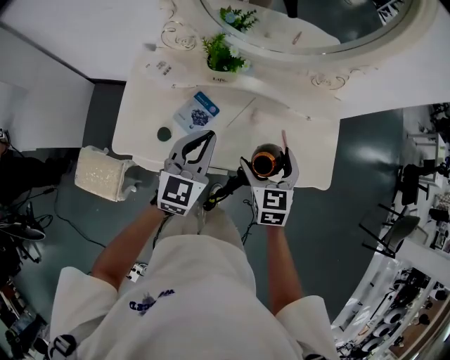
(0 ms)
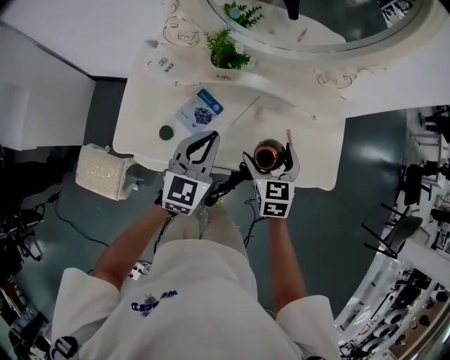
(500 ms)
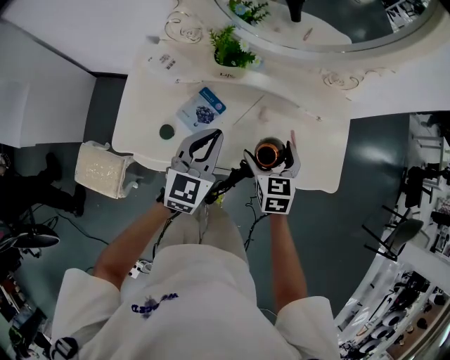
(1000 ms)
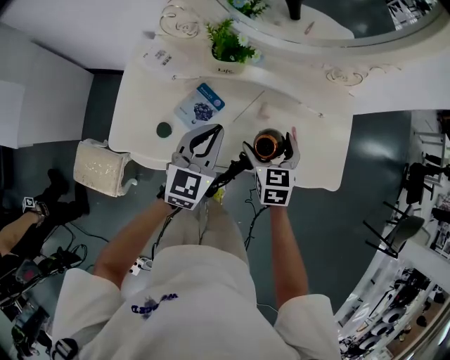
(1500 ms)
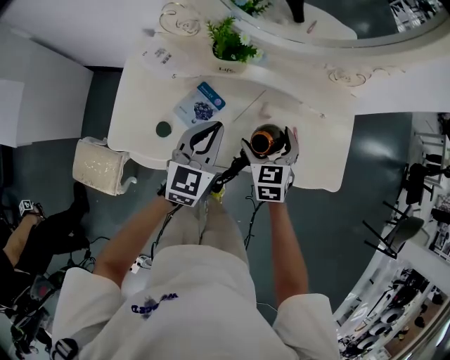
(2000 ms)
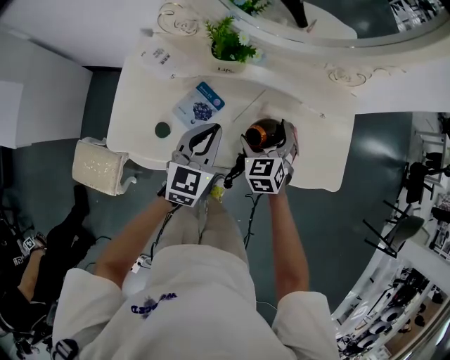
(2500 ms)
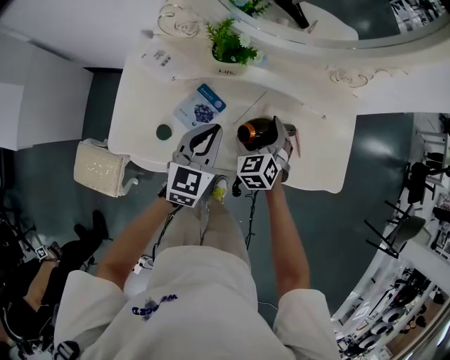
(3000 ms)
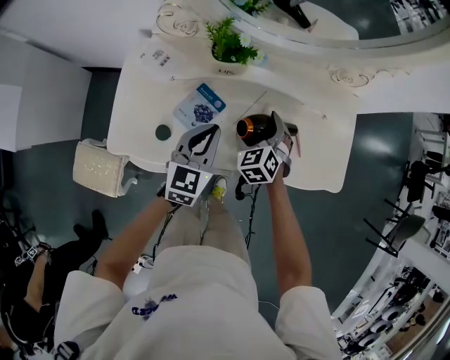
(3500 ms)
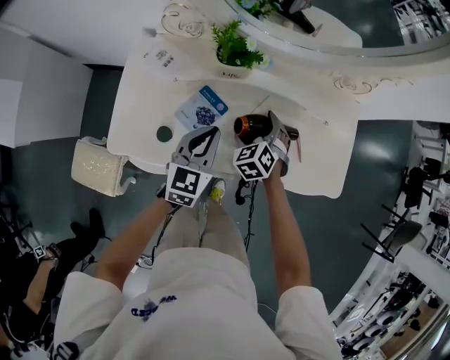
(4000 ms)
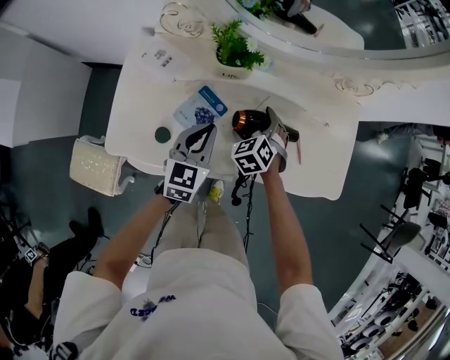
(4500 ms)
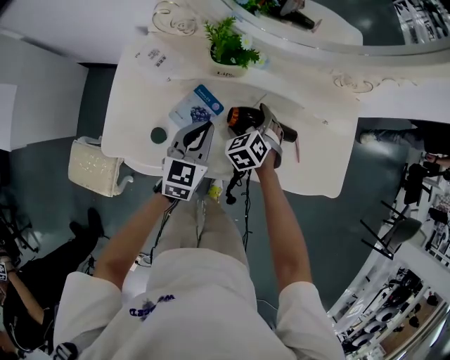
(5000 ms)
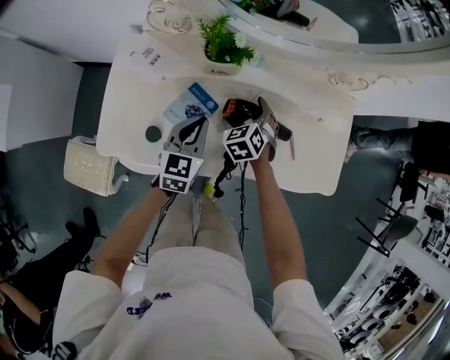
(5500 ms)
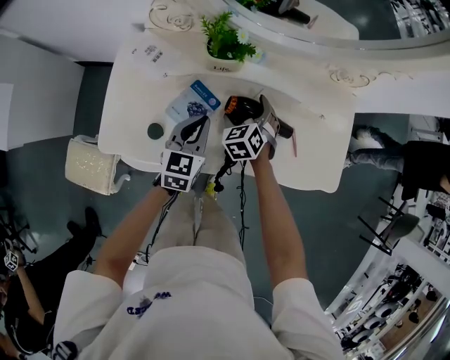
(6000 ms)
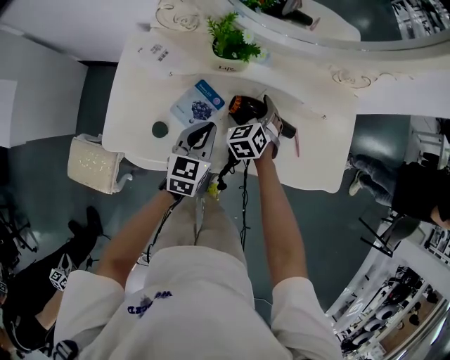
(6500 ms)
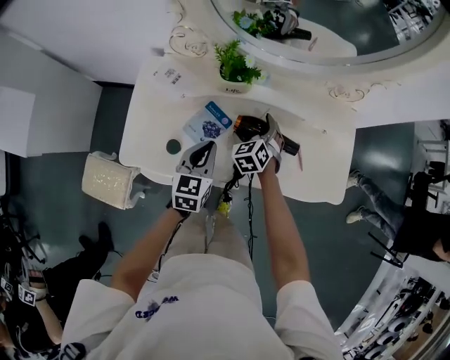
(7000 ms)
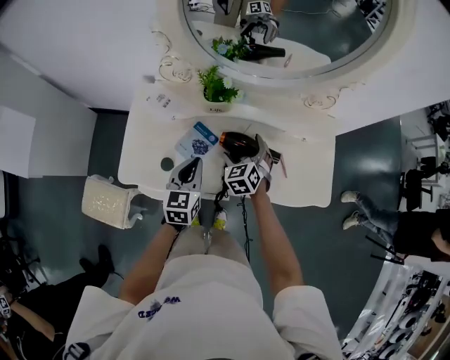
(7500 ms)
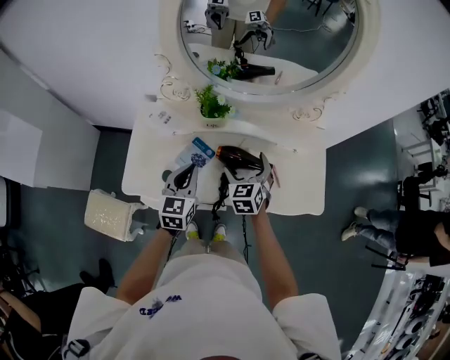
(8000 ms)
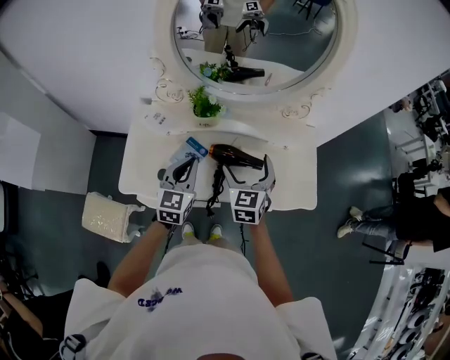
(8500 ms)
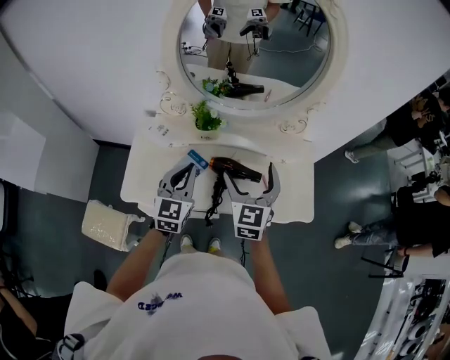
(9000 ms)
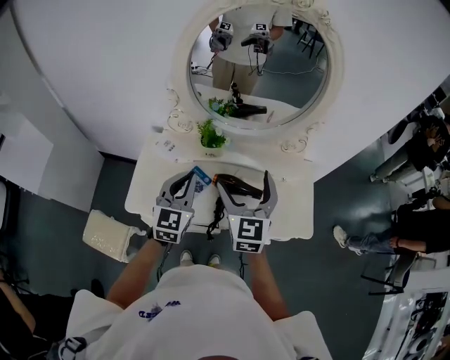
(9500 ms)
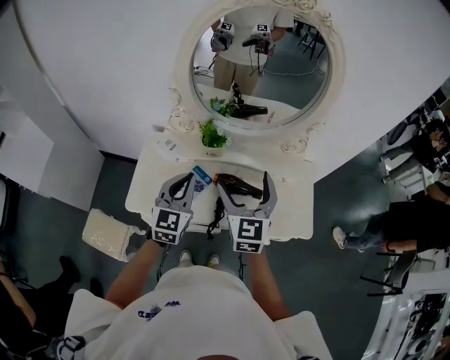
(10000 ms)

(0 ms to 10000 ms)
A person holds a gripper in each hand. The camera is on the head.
0 ms - 2000 ms: The left gripper travels downward by approximately 5 cm, while the right gripper heads downward and forward, covering roughly 10 cm.
2000 ms - 4000 ms: The right gripper moves downward, about 10 cm, and turns by approximately 30 degrees.
4000 ms - 6000 ms: The left gripper shifts by some 5 cm.
6000 ms - 8000 ms: Both grippers move upward, some 15 cm. The right gripper turns by approximately 20 degrees.
8000 ms - 10000 ms: The left gripper heads upward, covering some 15 cm, while the right gripper heads upward, covering about 25 cm, and swivels roughly 30 degrees.

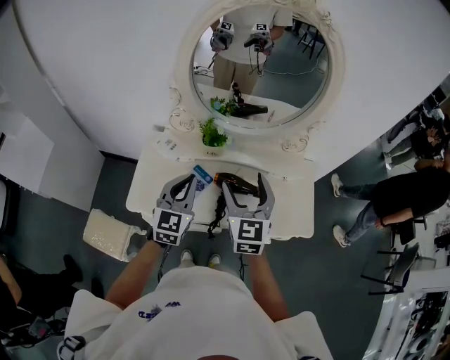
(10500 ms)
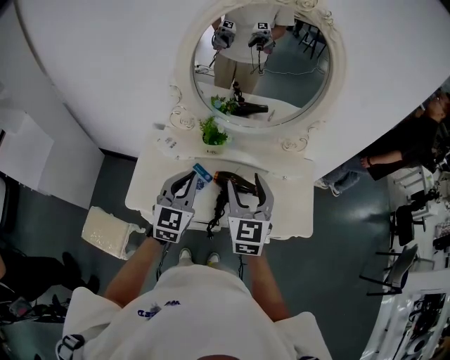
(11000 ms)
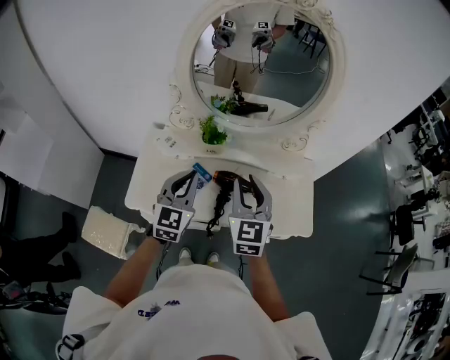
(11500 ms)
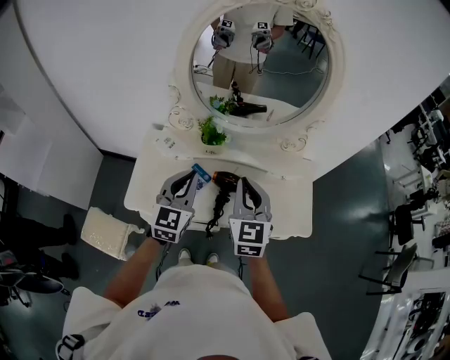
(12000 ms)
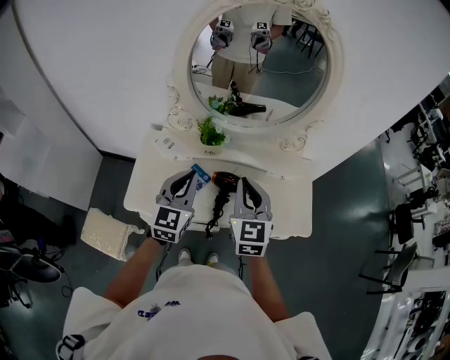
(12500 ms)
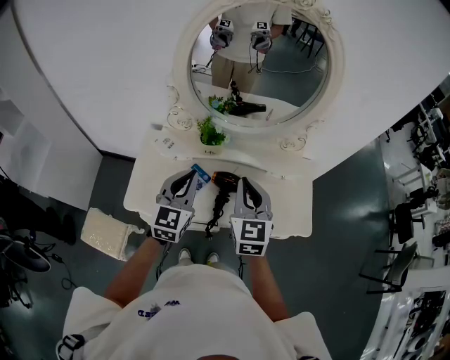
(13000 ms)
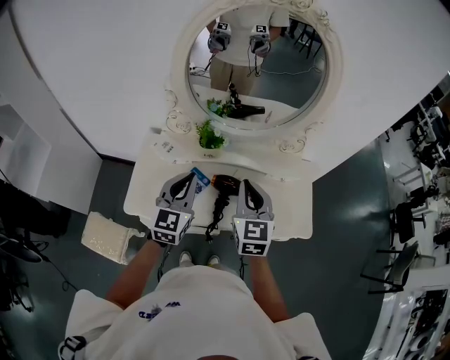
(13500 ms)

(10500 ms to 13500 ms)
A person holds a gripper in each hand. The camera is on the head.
10500 ms - 12000 ms: The right gripper closes.
12000 ms - 13500 ms: There are only small adjustments of the grippers.

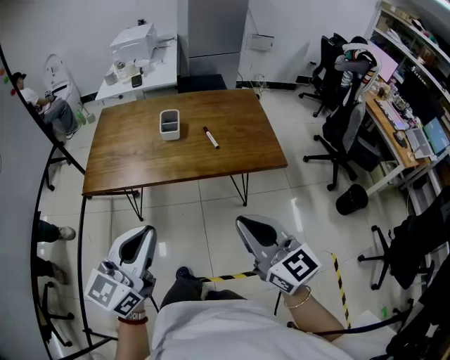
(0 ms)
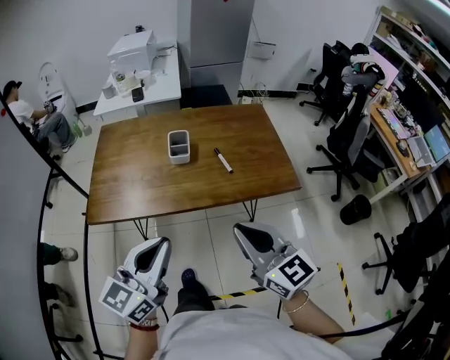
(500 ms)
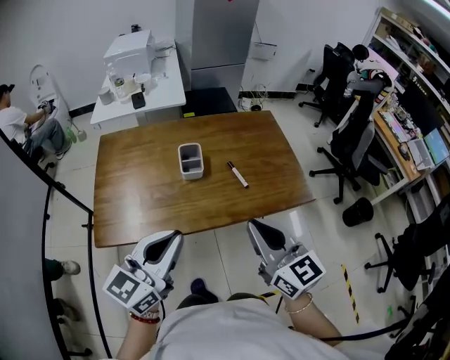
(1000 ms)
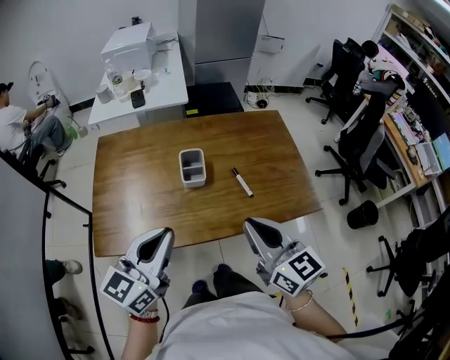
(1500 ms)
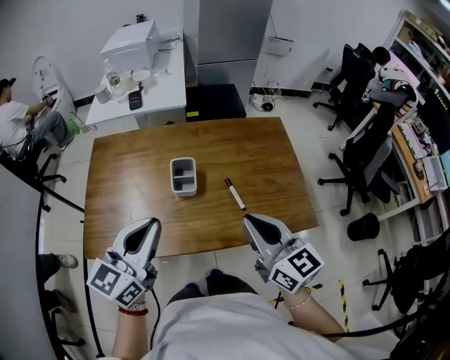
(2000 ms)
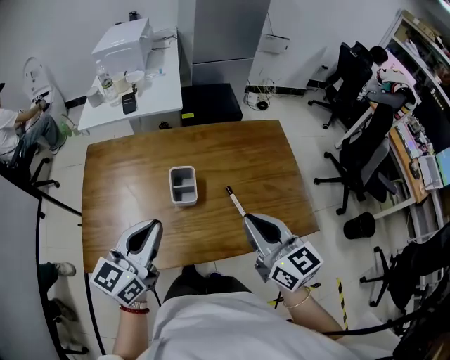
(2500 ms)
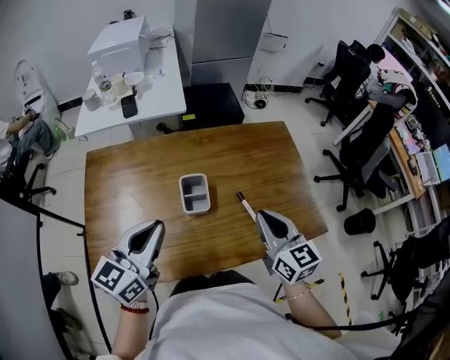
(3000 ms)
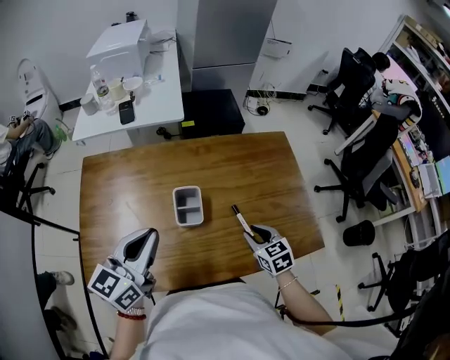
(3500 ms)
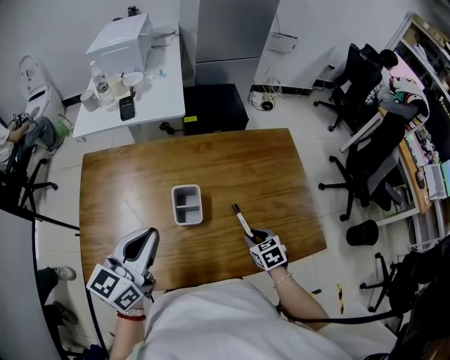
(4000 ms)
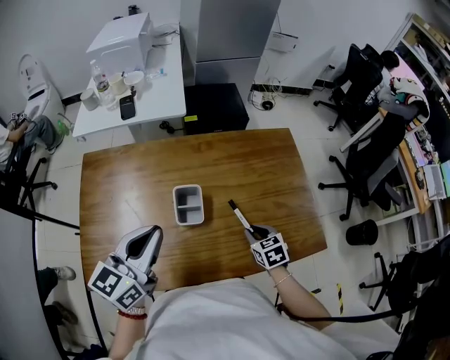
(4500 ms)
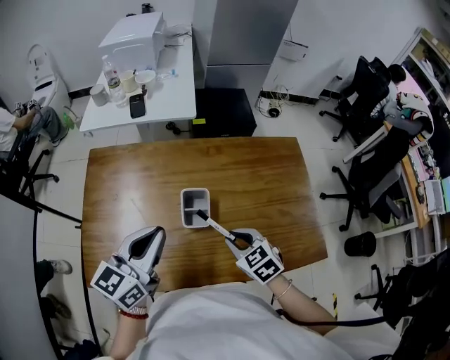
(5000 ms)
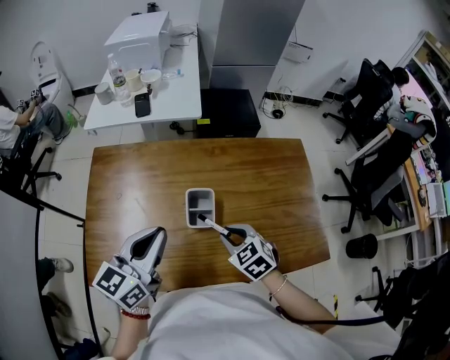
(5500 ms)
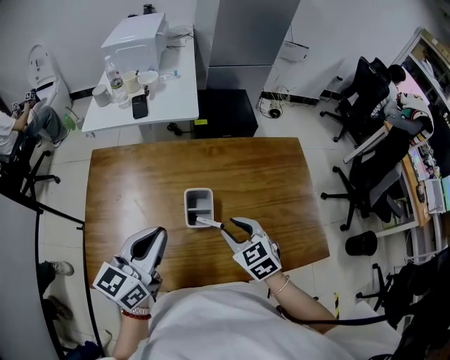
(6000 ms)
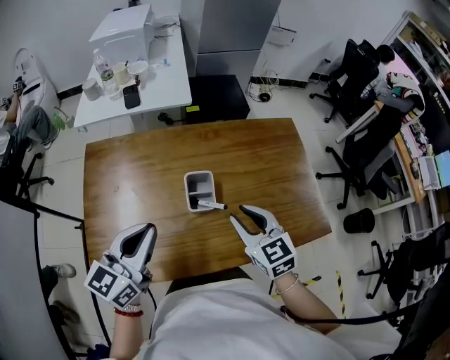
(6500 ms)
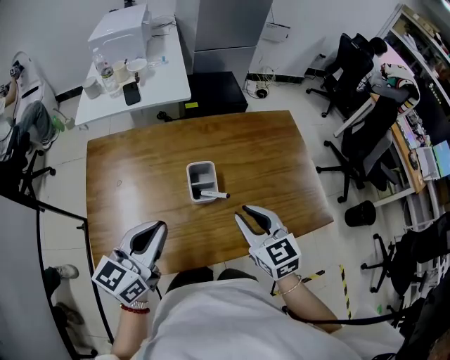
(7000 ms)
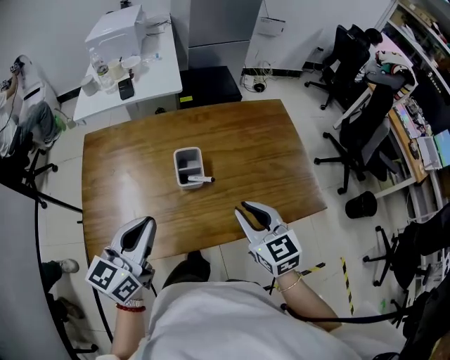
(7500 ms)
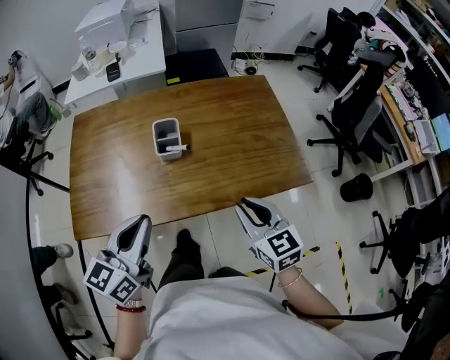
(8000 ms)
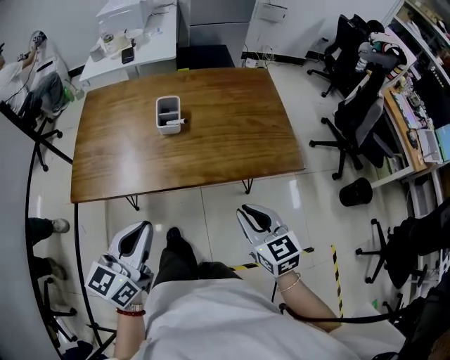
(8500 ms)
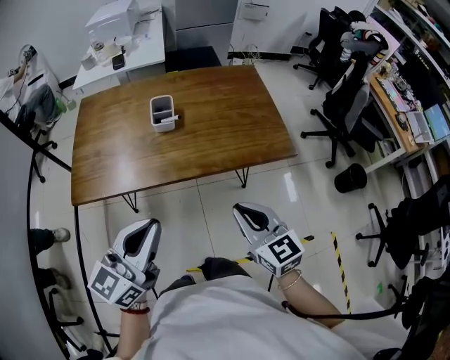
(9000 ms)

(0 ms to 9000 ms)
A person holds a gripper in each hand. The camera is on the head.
0 ms - 2000 ms: Both grippers move forward, approximately 35 cm.
2000 ms - 4500 ms: The left gripper shifts roughly 15 cm forward and downward; the right gripper is displaced downward and forward by approximately 30 cm, and points its fingers approximately 50 degrees further downward.
4500 ms - 7000 ms: The left gripper is displaced to the left and backward by some 10 cm. The right gripper heads upward and to the left, covering some 20 cm, and turns by some 30 degrees.
7000 ms - 9000 ms: The grippers both shift backward and to the right by some 35 cm.

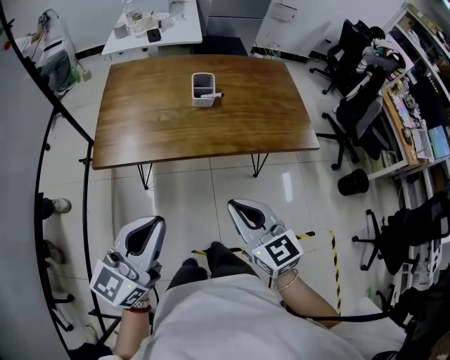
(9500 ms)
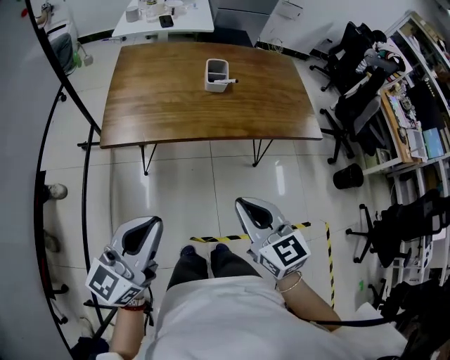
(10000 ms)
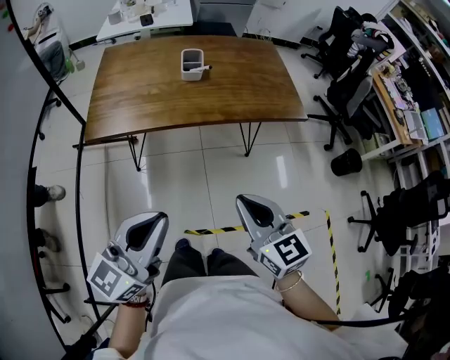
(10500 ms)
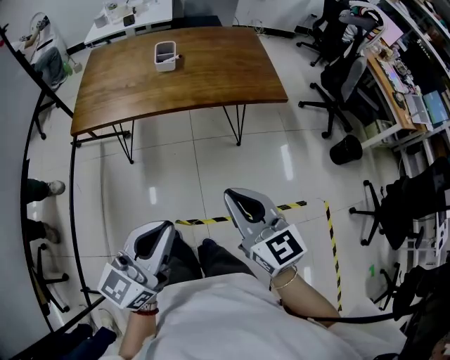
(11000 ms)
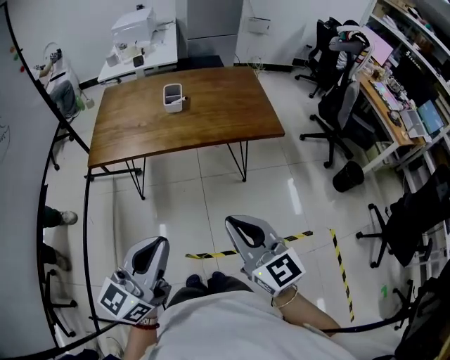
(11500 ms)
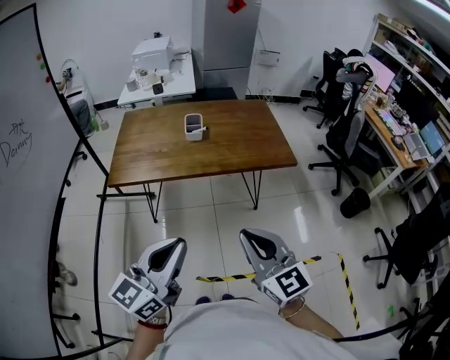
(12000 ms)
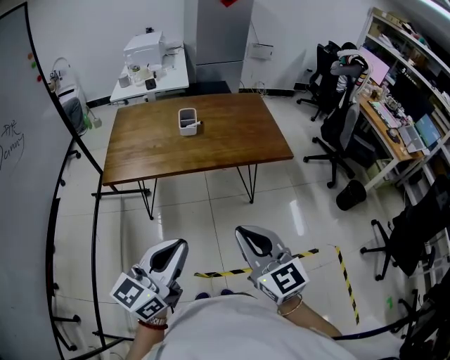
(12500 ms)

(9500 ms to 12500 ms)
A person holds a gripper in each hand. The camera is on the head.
9500 ms - 11000 ms: The right gripper is displaced backward and to the right by some 20 cm, while the left gripper heads to the right and backward, covering roughly 25 cm.
11000 ms - 12500 ms: The left gripper goes about 10 cm to the left and upward, while the right gripper shifts some 10 cm upward and to the left.

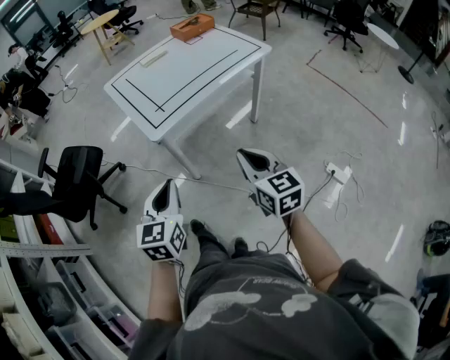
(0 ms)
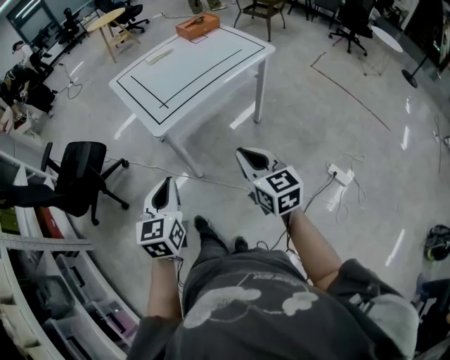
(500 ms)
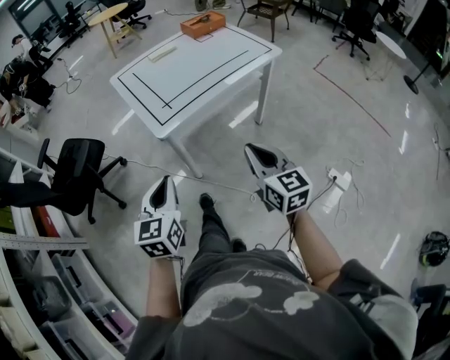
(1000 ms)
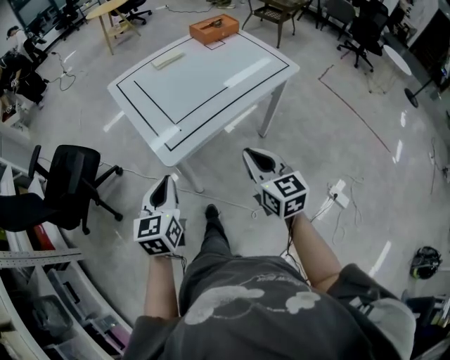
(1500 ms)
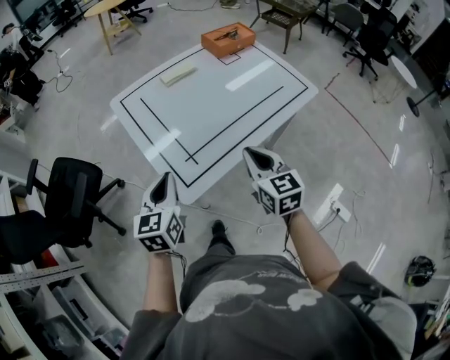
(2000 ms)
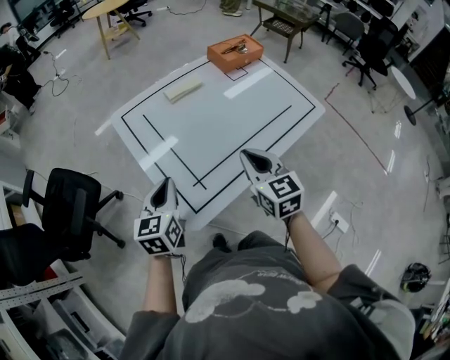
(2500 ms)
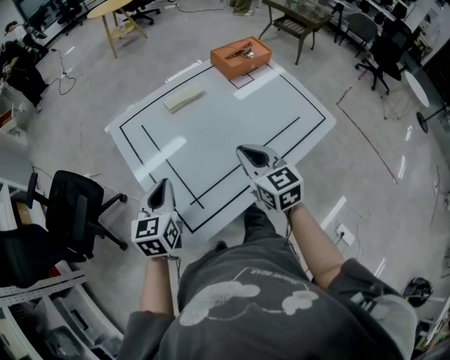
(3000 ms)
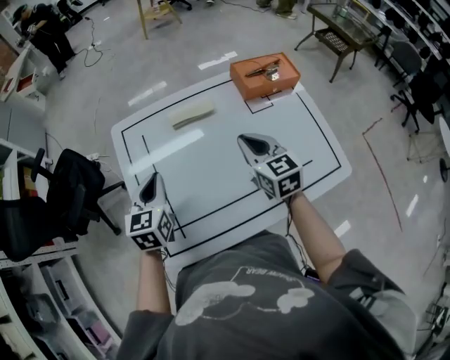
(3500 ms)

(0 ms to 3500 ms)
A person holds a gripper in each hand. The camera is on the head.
0 ms - 2000 ms: Both grippers travel together forward, some 35 cm.
2000 ms - 3500 ms: The grippers both shift forward by roughly 30 cm. The left gripper rotates some 20 degrees, while the right gripper swivels approximately 20 degrees.
